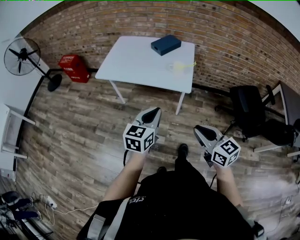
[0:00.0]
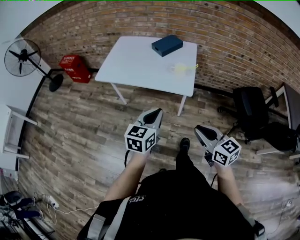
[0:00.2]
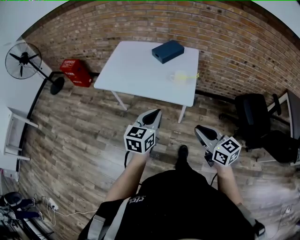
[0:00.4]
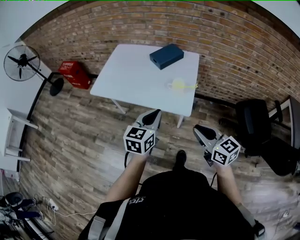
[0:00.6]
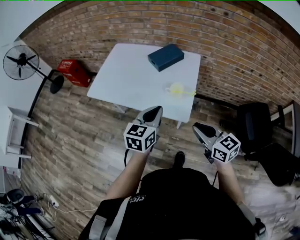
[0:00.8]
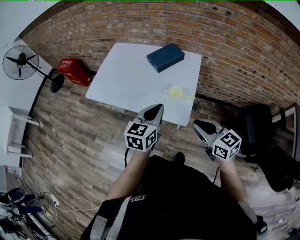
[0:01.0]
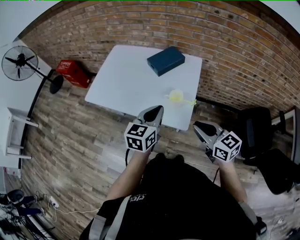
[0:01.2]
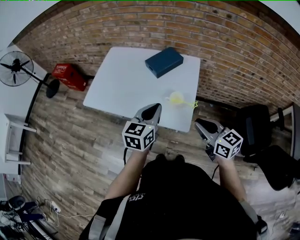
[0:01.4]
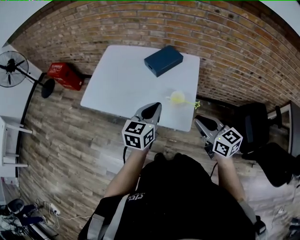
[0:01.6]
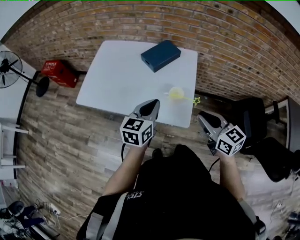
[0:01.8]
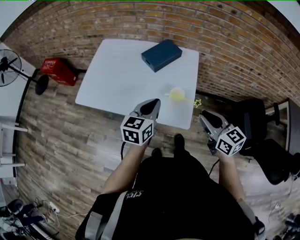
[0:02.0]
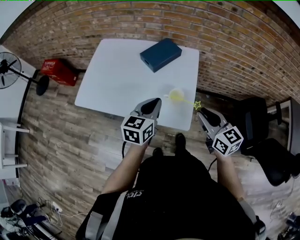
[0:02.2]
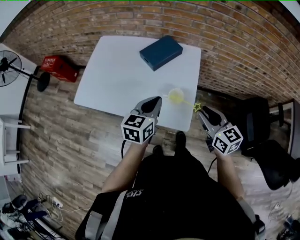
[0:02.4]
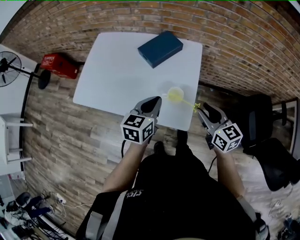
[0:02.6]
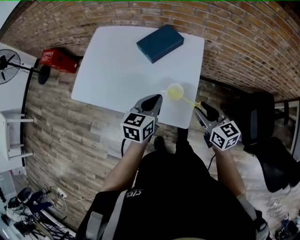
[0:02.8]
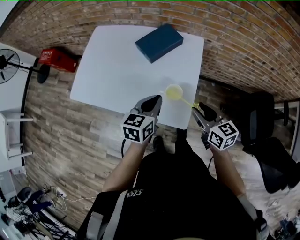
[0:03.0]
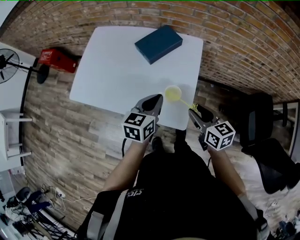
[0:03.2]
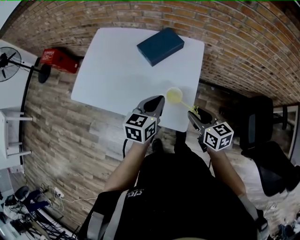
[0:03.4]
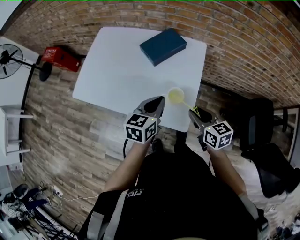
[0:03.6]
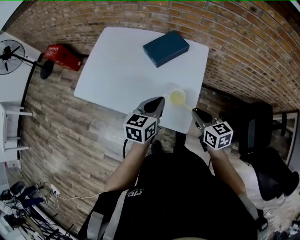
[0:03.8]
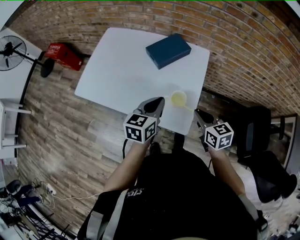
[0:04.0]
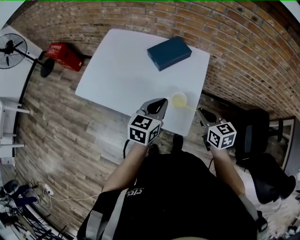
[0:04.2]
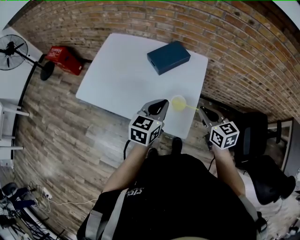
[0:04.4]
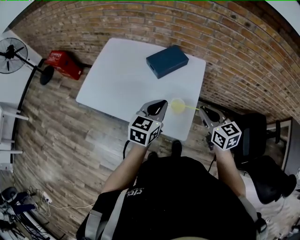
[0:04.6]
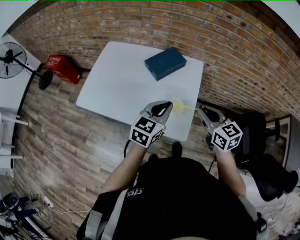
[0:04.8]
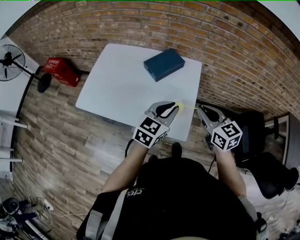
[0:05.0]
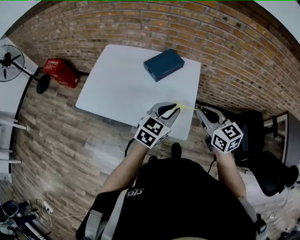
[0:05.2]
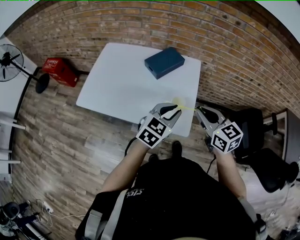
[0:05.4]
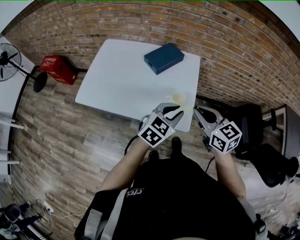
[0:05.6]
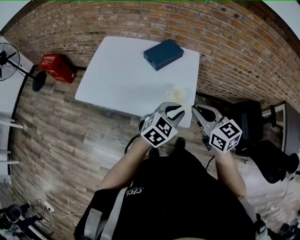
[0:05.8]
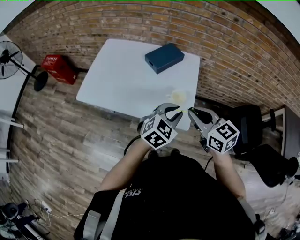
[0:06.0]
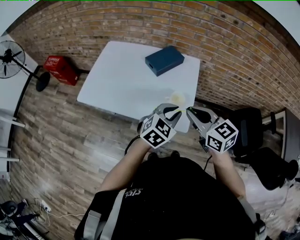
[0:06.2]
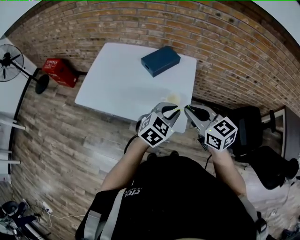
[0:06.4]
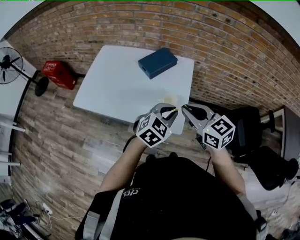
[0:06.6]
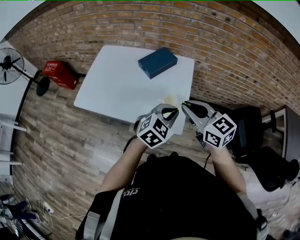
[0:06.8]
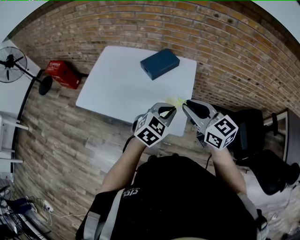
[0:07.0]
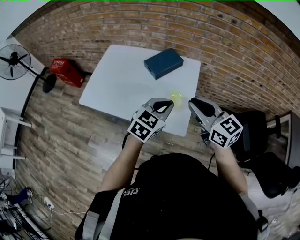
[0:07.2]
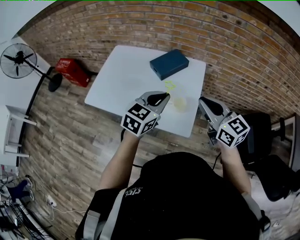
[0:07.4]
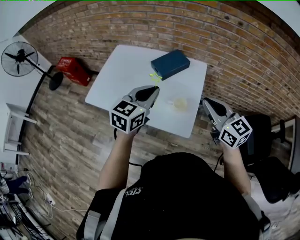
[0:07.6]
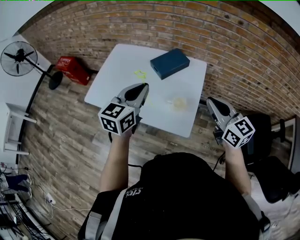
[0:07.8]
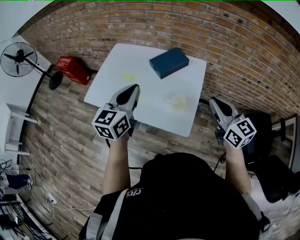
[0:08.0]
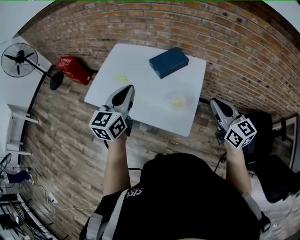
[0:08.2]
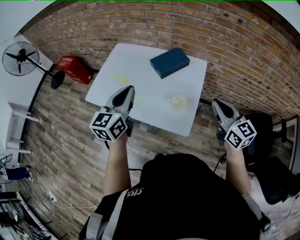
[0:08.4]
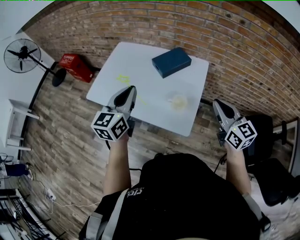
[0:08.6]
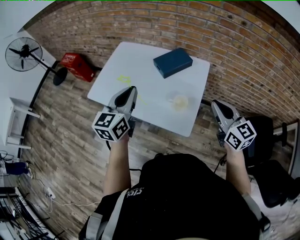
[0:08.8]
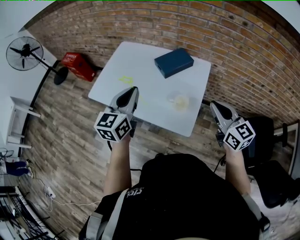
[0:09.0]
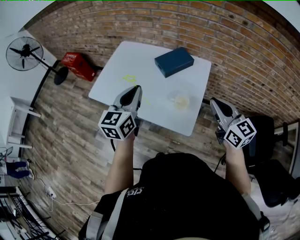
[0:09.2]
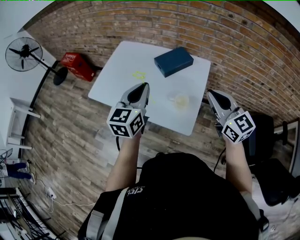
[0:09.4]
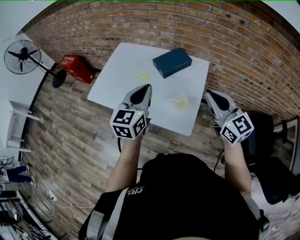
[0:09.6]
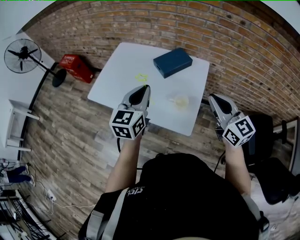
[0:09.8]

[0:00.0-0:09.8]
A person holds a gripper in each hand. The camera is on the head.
0:00.0 to 0:01.4: Both grippers travel together forward, approximately 30 cm.
0:01.4 to 0:02.8: The right gripper heads forward and downward, covering approximately 15 cm, and opens its fingers; the left gripper travels downward and forward by about 10 cm.
0:02.8 to 0:04.2: The right gripper closes up.
0:04.2 to 0:05.6: The right gripper is displaced upward, backward and to the left by roughly 15 cm. Meanwhile the left gripper shifts about 5 cm backward, and changes its angle by roughly 30 degrees.
0:05.6 to 0:07.0: The right gripper is displaced upward by approximately 5 cm.
0:07.0 to 0:08.4: The right gripper goes roughly 10 cm to the right; the left gripper travels to the left and upward by some 20 cm, and turns by some 50 degrees.

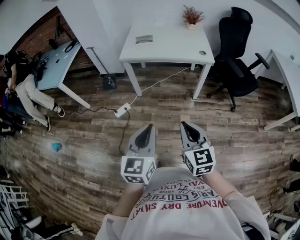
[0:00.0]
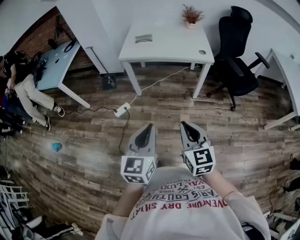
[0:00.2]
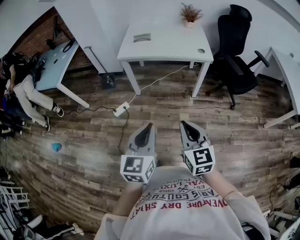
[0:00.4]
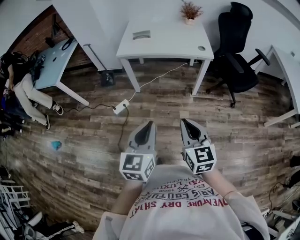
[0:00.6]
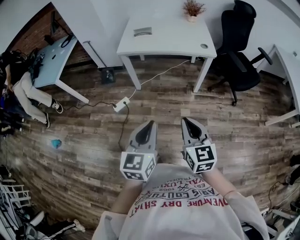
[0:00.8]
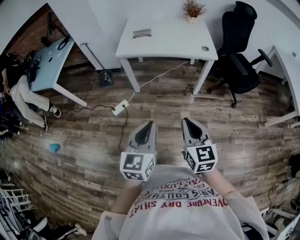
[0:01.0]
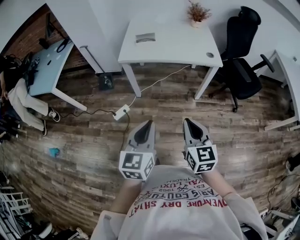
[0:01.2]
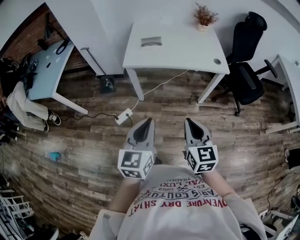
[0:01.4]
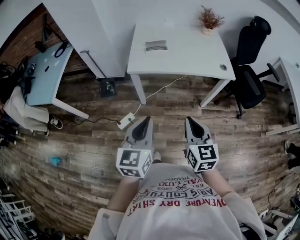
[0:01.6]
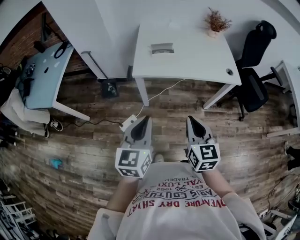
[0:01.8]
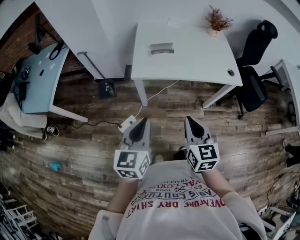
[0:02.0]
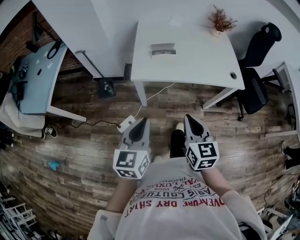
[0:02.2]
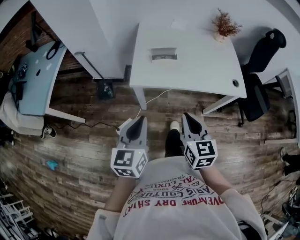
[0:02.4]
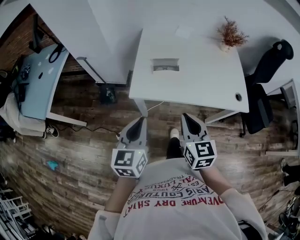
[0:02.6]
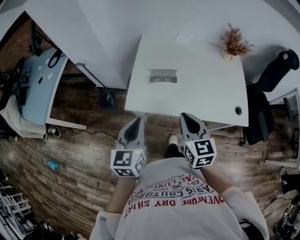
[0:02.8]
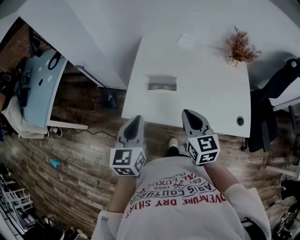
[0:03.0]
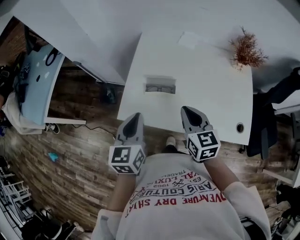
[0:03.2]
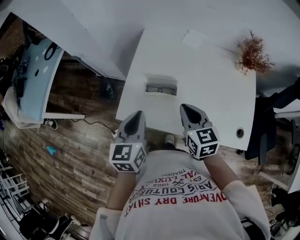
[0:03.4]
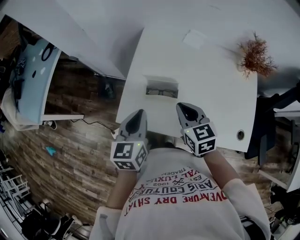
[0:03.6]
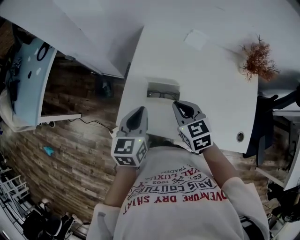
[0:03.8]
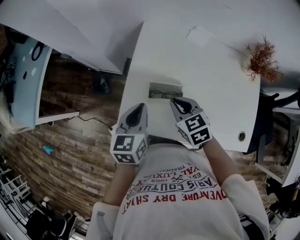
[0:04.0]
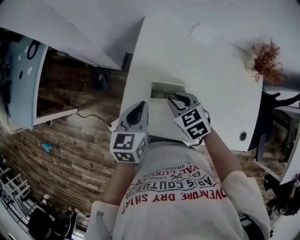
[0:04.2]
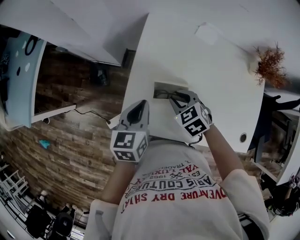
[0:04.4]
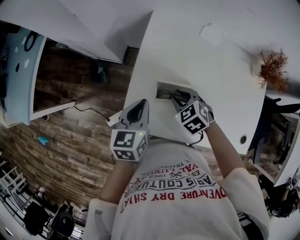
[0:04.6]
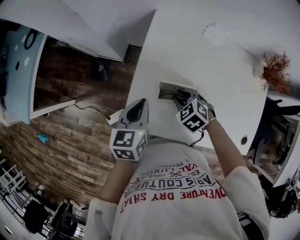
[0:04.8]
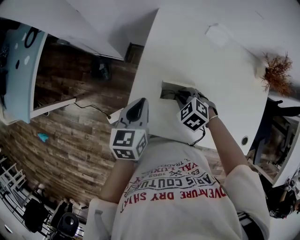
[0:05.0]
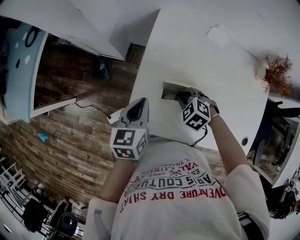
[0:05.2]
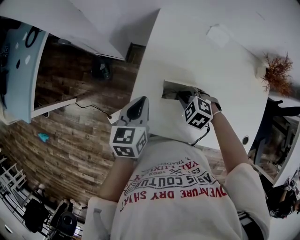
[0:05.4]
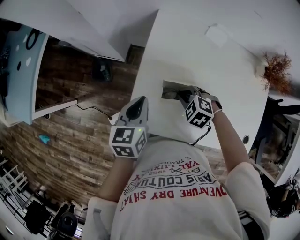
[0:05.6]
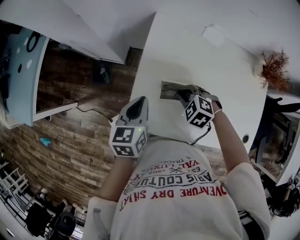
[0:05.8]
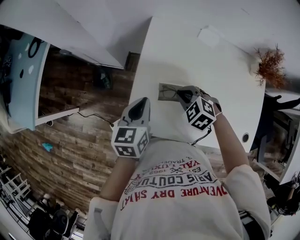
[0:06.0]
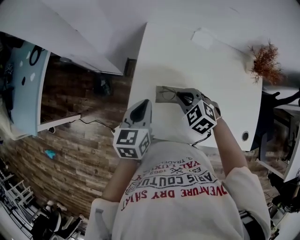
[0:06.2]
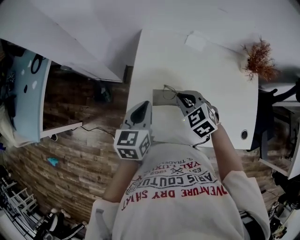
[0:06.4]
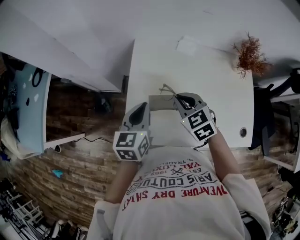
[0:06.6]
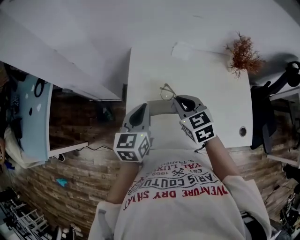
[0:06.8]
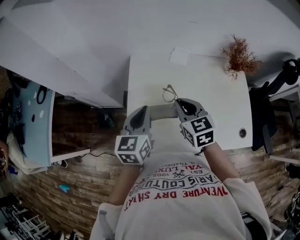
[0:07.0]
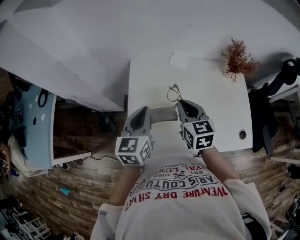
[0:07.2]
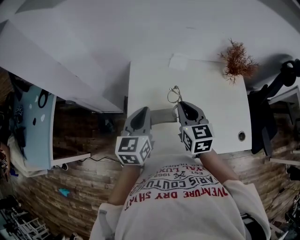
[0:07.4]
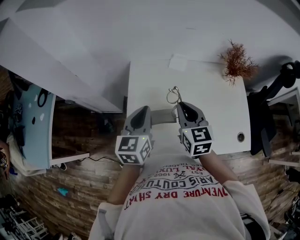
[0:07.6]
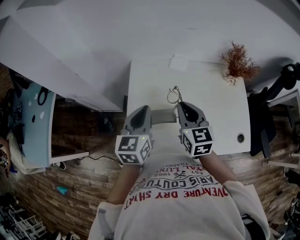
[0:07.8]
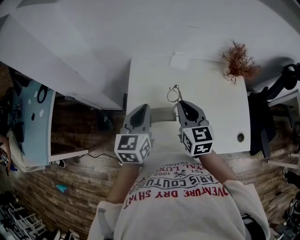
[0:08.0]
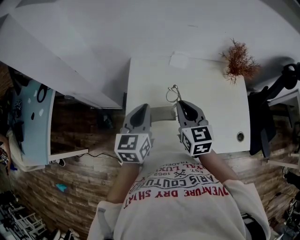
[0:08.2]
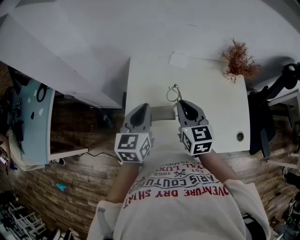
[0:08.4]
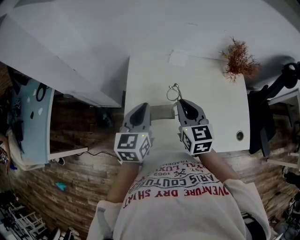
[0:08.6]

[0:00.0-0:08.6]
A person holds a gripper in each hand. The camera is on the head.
0:00.0 to 0:01.4: Both grippers travel together forward and to the left, approximately 20 cm.
0:01.4 to 0:02.8: Both grippers travel together forward, roughly 40 cm.
0:02.8 to 0:04.4: Both grippers travel together forward and downward, approximately 30 cm. The right gripper tilts its fingers about 40 degrees downward, and opens up.
0:04.4 to 0:05.8: The right gripper changes its angle by roughly 30 degrees.
0:05.8 to 0:07.2: Both grippers travel together upward and to the right, some 20 cm. The right gripper angles its fingers upward, by about 40 degrees. Meanwhile the left gripper changes its angle by some 20 degrees.
0:07.2 to 0:08.6: There are only small adjustments of the grippers.

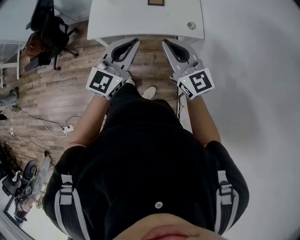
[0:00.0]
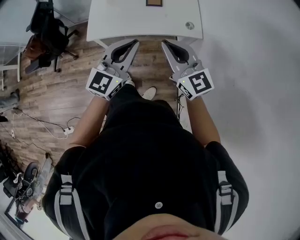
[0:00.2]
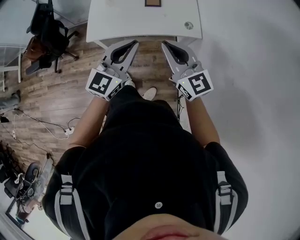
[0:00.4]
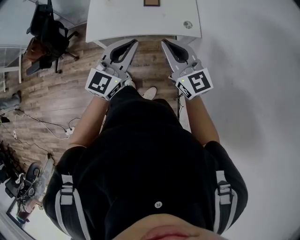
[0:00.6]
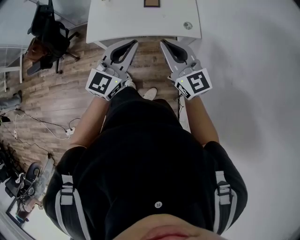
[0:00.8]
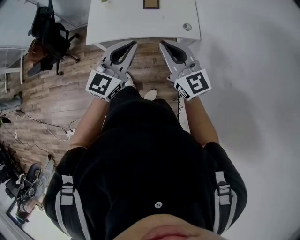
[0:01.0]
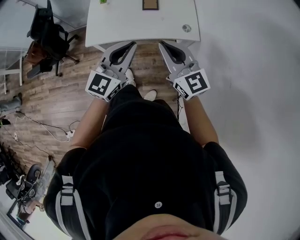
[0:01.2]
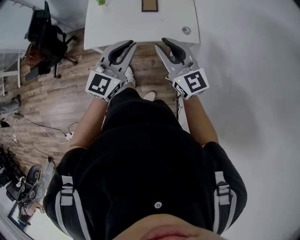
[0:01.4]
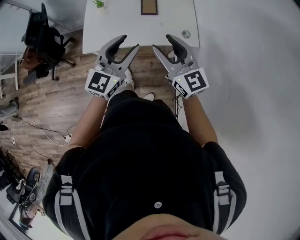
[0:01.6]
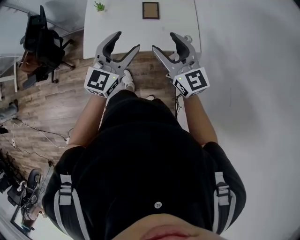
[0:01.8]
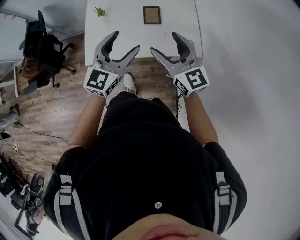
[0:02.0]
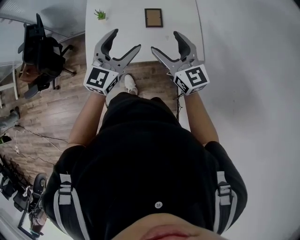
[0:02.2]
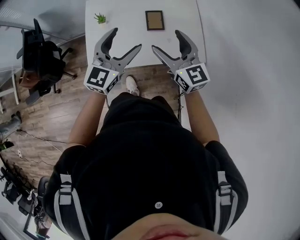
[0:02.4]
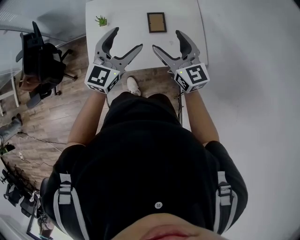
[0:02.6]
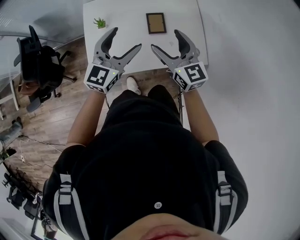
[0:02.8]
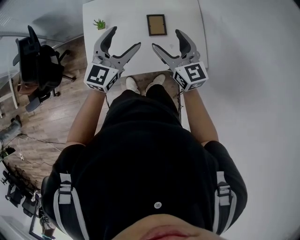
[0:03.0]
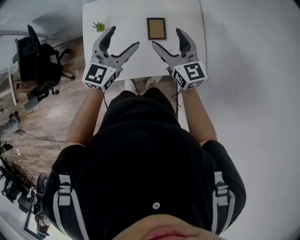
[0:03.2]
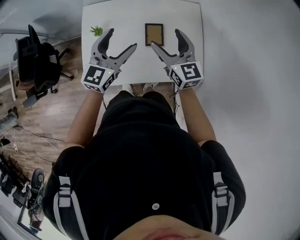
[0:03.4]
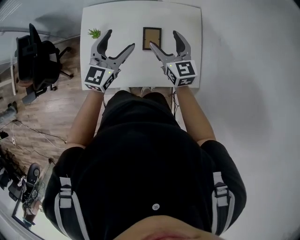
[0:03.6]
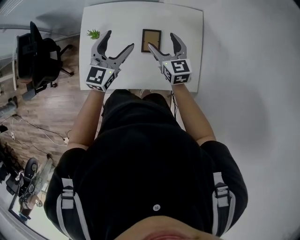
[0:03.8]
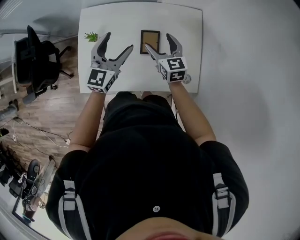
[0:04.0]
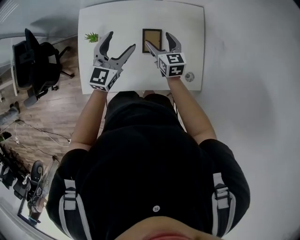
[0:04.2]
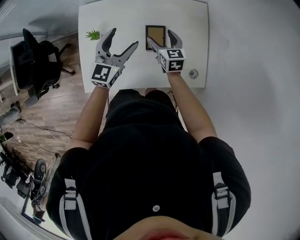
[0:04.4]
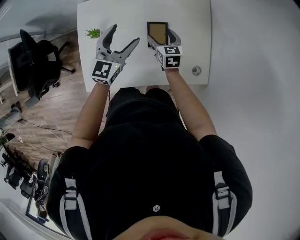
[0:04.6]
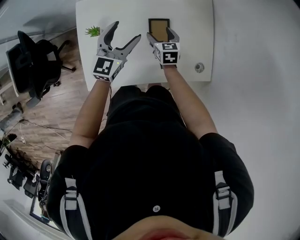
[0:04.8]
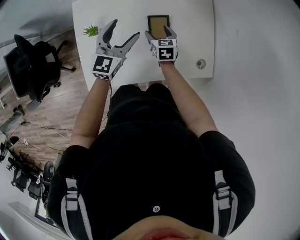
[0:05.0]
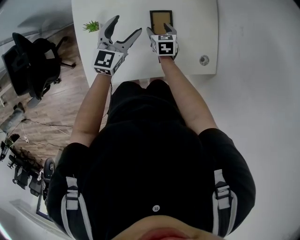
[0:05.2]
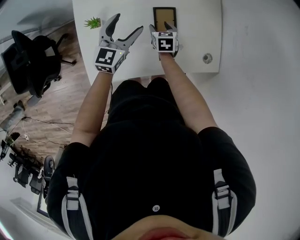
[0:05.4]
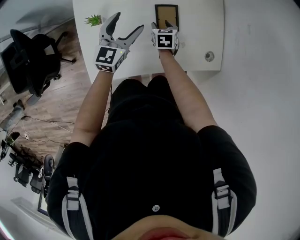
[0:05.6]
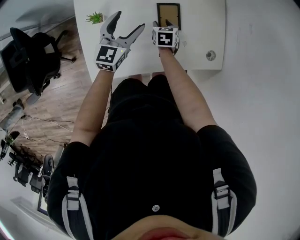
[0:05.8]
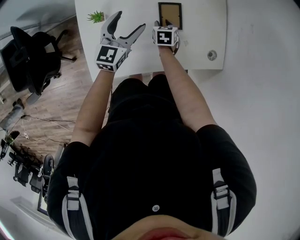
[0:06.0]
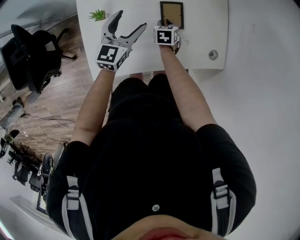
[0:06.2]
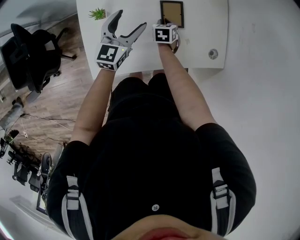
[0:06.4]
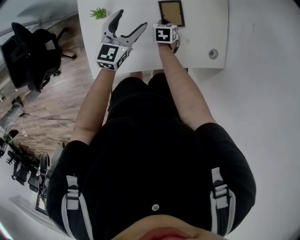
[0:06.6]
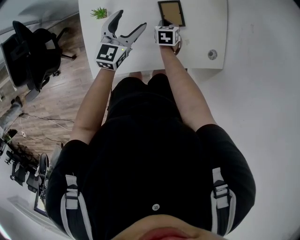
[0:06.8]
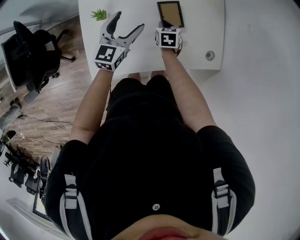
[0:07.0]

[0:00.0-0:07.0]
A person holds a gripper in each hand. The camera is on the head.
0:00.0 to 0:01.4: There are only small adjustments of the grippers.
0:01.4 to 0:02.8: The right gripper travels forward by roughly 25 cm, and opens its fingers. The left gripper goes approximately 30 cm forward and to the left, and opens up.
0:02.8 to 0:04.2: The left gripper travels forward and downward by some 15 cm, while the right gripper moves forward and downward, roughly 25 cm.
0:04.2 to 0:05.6: The right gripper moves downward, some 20 cm, swivels approximately 30 degrees, and closes up; the left gripper goes approximately 15 cm downward and to the left.
0:05.6 to 0:07.0: The right gripper closes its fingers.
